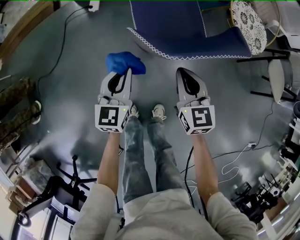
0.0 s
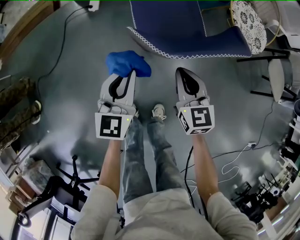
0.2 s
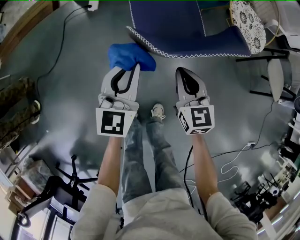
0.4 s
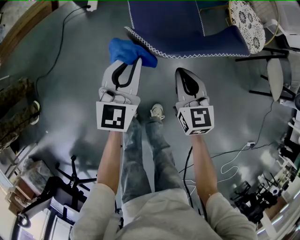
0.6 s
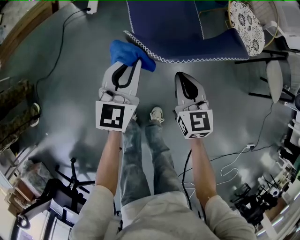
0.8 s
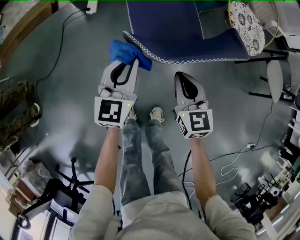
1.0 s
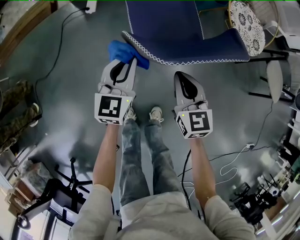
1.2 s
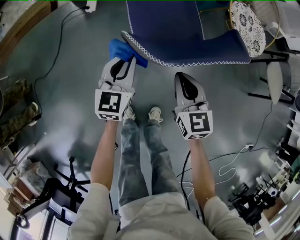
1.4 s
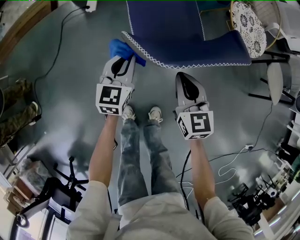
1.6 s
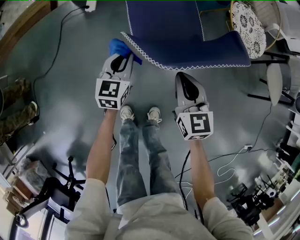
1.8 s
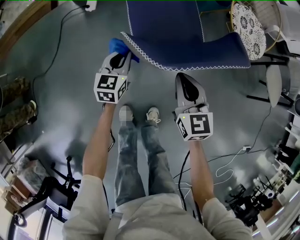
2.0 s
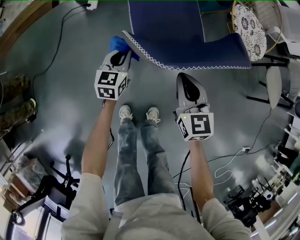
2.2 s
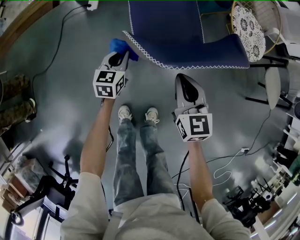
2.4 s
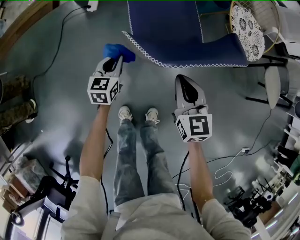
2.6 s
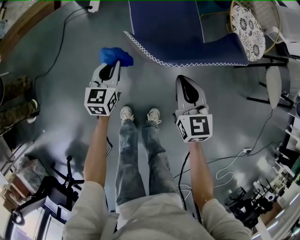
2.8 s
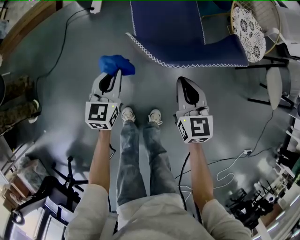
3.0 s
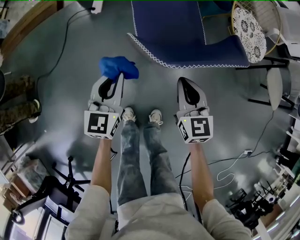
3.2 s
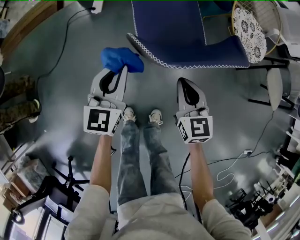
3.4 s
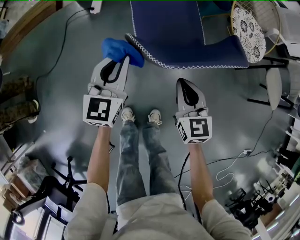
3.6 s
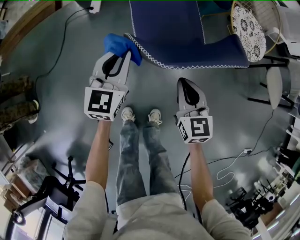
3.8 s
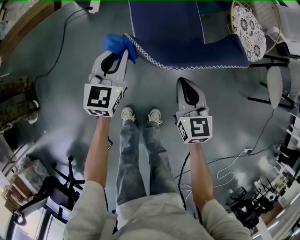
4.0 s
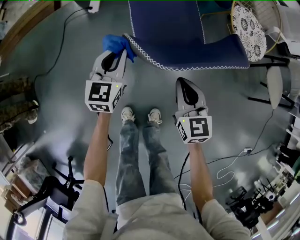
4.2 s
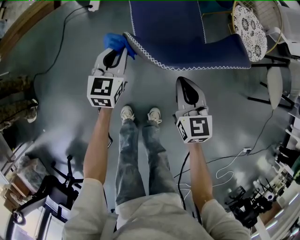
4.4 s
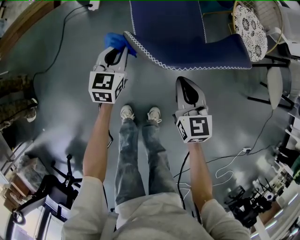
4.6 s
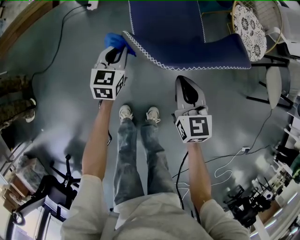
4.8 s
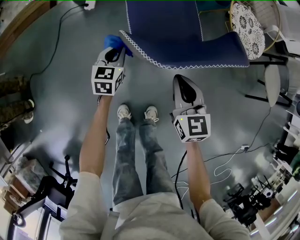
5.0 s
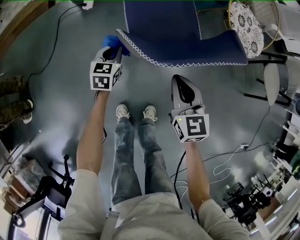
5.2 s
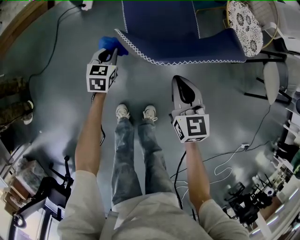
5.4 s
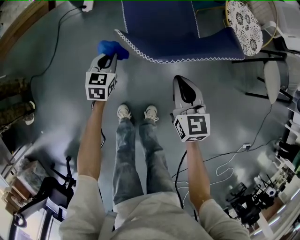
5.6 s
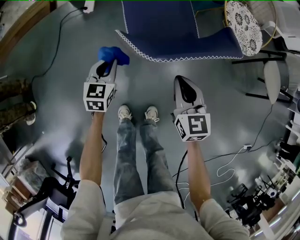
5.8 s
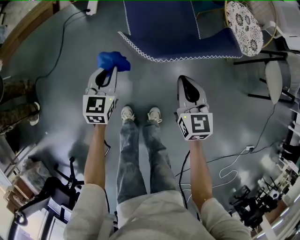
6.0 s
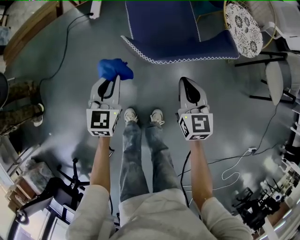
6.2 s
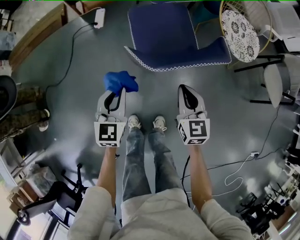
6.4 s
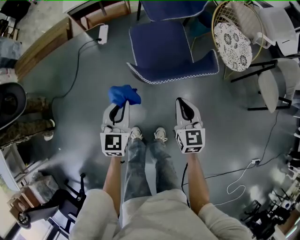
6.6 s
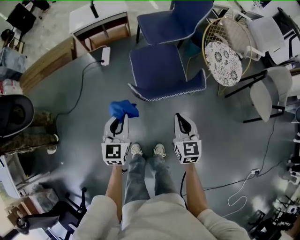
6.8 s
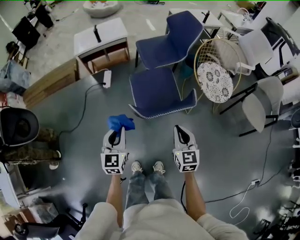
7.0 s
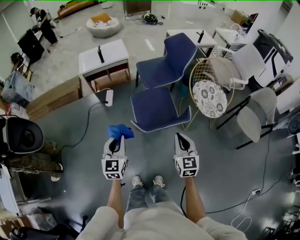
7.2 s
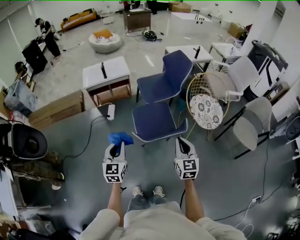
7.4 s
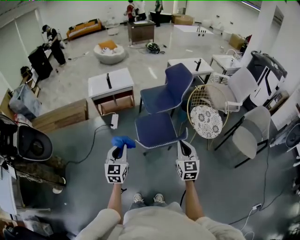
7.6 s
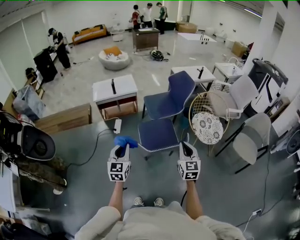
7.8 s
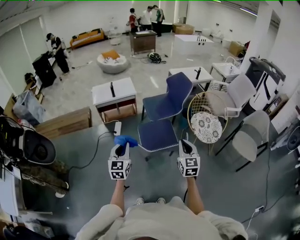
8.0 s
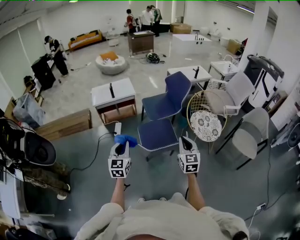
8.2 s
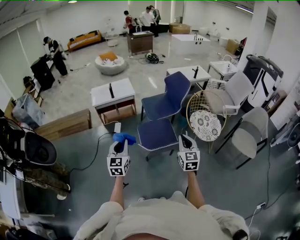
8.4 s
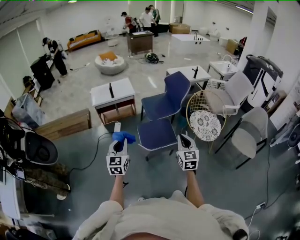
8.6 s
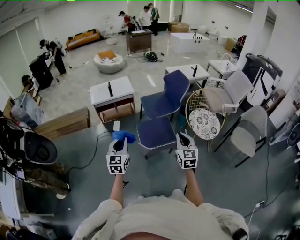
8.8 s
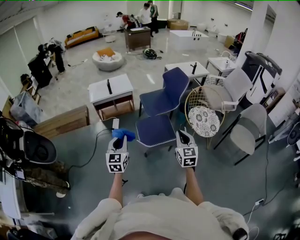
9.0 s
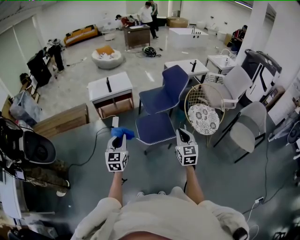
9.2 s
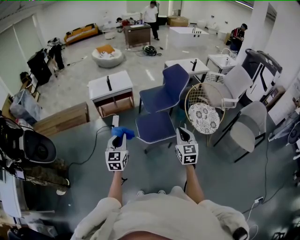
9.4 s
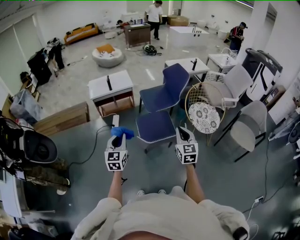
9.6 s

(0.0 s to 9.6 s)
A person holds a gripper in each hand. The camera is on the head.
0.0 s - 1.6 s: The left gripper heads forward, covering roughly 5 cm, and moves approximately 5 cm upward and comes back.
1.6 s - 3.2 s: The left gripper goes roughly 10 cm backward and upward.
3.2 s - 4.8 s: The left gripper heads forward and downward, covering about 15 cm.
4.8 s - 6.4 s: The right gripper shifts by some 5 cm; the left gripper is displaced upward and backward by some 15 cm.
6.4 s - 8.0 s: The two grippers go approximately 30 cm upward.
8.0 s - 9.6 s: The grippers make only small movements.

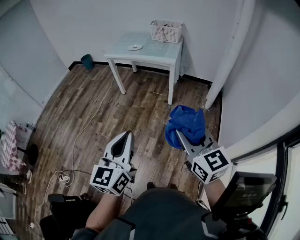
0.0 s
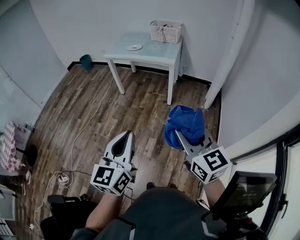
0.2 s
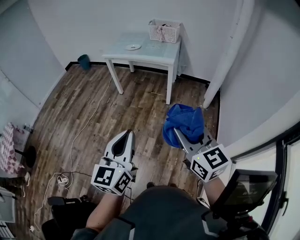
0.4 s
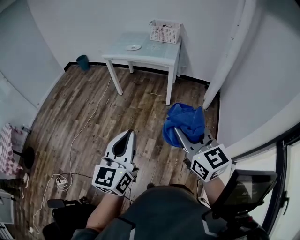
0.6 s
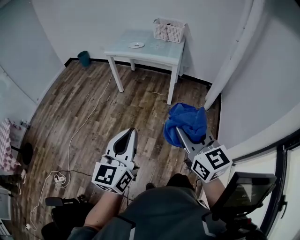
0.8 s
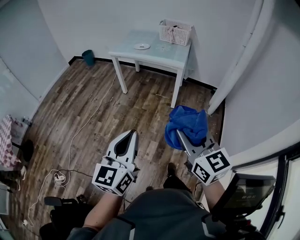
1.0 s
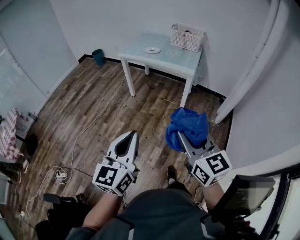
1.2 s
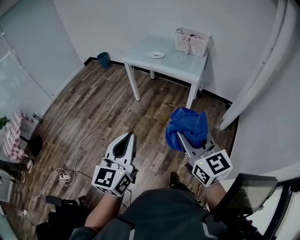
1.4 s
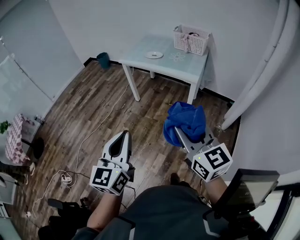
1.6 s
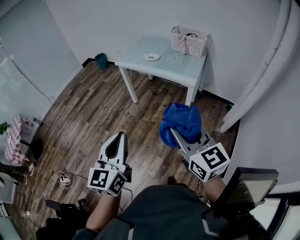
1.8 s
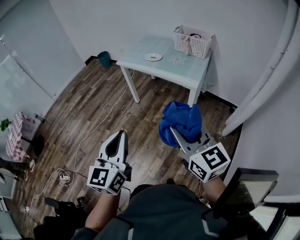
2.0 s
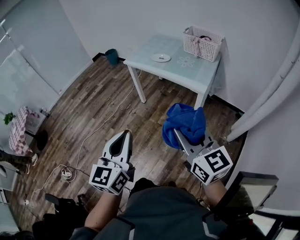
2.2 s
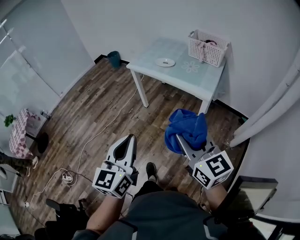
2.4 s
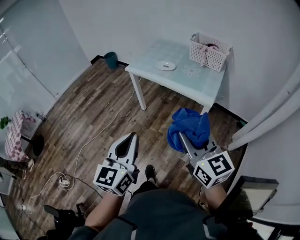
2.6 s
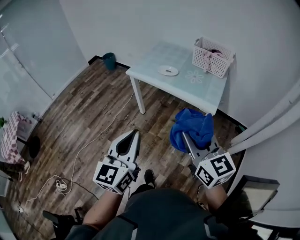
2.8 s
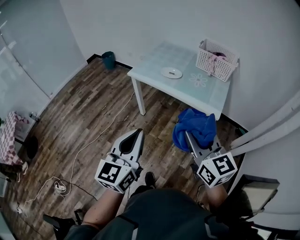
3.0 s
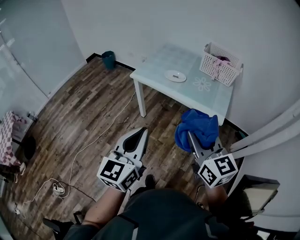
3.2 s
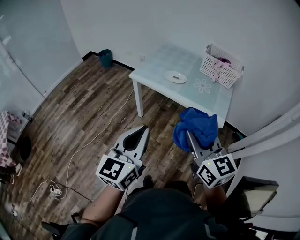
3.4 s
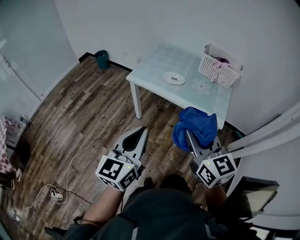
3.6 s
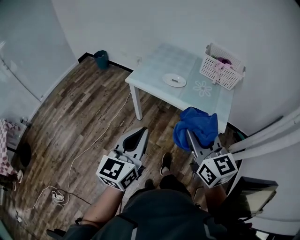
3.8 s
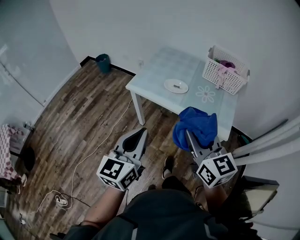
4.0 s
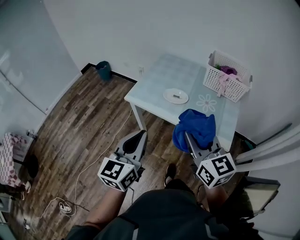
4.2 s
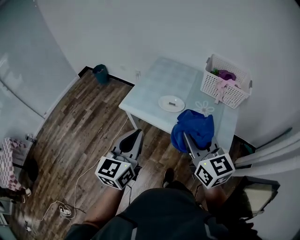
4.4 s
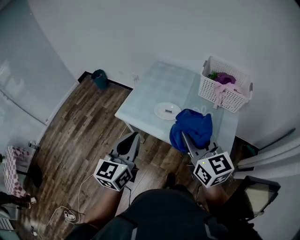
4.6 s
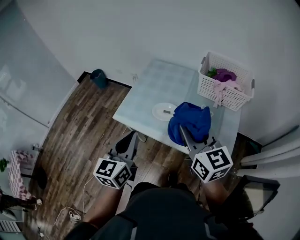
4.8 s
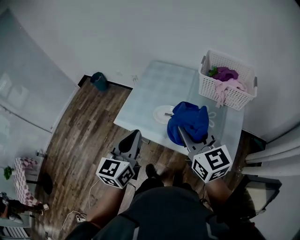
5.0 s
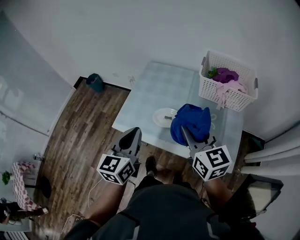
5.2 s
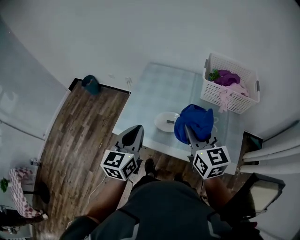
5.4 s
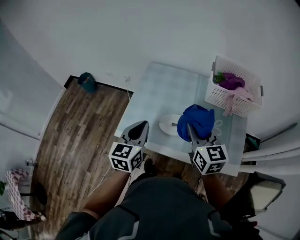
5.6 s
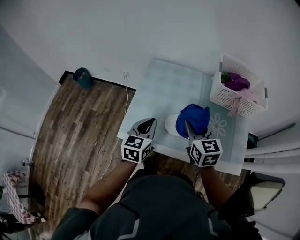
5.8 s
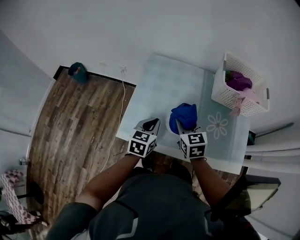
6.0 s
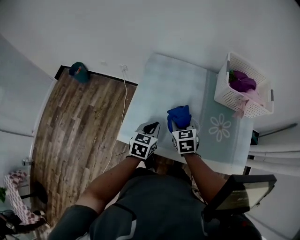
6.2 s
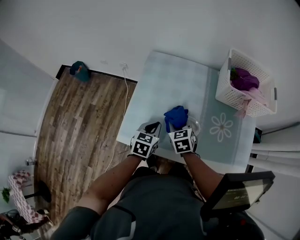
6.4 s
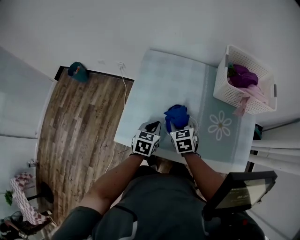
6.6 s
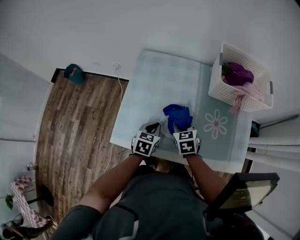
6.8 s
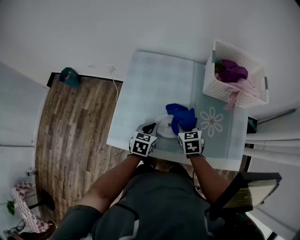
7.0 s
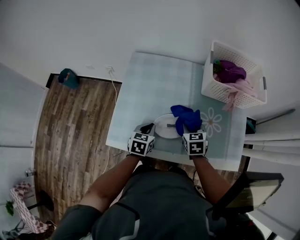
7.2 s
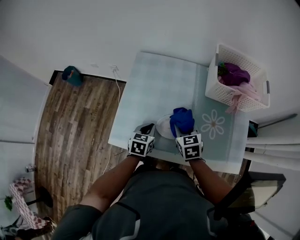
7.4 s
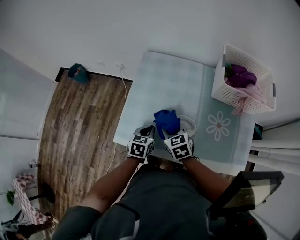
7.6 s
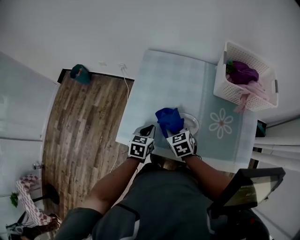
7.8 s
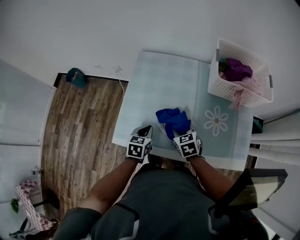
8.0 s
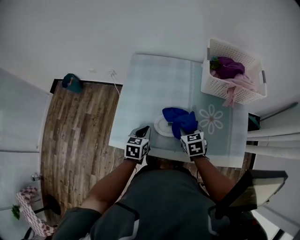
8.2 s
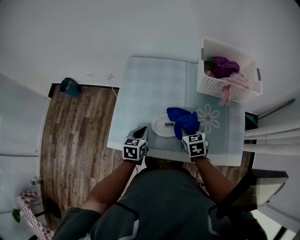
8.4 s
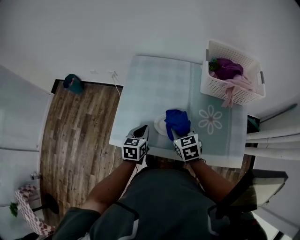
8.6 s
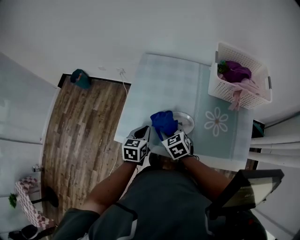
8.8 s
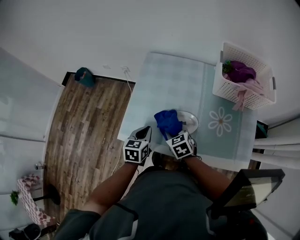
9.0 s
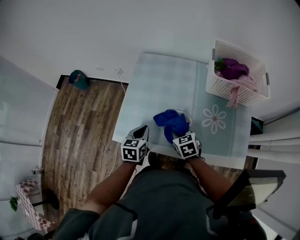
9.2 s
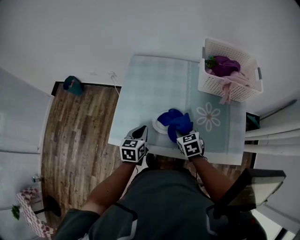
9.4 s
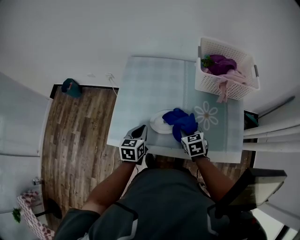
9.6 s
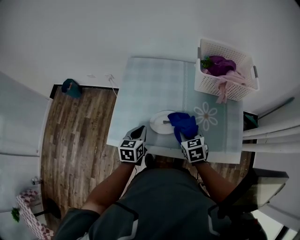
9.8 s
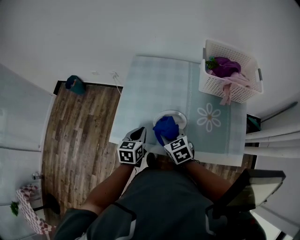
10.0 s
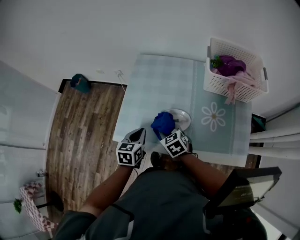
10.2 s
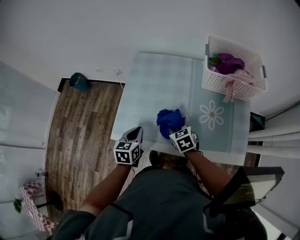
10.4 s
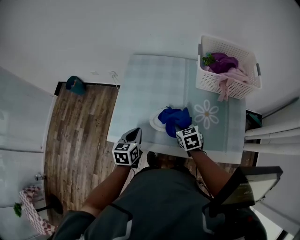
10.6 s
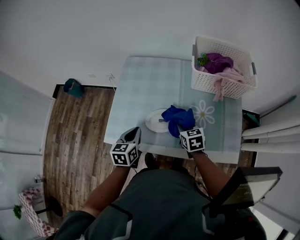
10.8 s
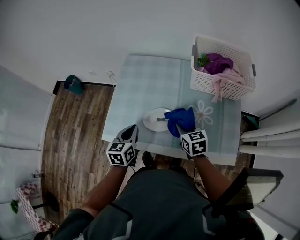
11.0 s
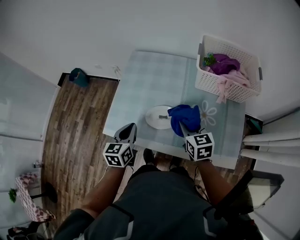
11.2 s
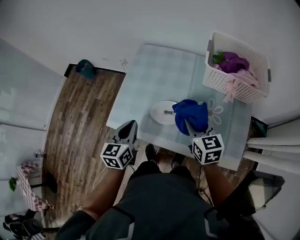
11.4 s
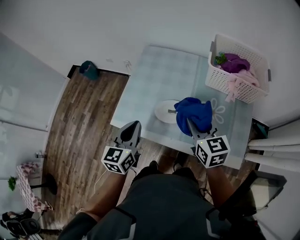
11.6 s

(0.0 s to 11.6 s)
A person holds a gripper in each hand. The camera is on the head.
0.0 s - 1.4 s: Both grippers travel together forward, approximately 15 cm.
1.4 s - 2.8 s: Both grippers move forward, about 30 cm.
2.8 s - 4.4 s: Both grippers move forward, approximately 35 cm.
4.4 s - 5.8 s: Both grippers travel together forward and downward, some 35 cm. The right gripper rotates some 20 degrees. Meanwhile the left gripper changes its angle by about 20 degrees.
5.8 s - 7.2 s: The right gripper travels downward and to the right by approximately 20 cm, and rotates about 30 degrees; the left gripper travels downward by roughly 15 cm, and swivels roughly 20 degrees.
7.2 s - 8.8 s: The right gripper swings left and right, about 15 cm each way, with 2 reversals, and turns by about 30 degrees. Meanwhile the left gripper goes some 5 cm to the left.
8.8 s - 10.2 s: The right gripper goes to the right and returns, about 15 cm each way.
10.2 s - 11.6 s: The right gripper travels upward and to the right by approximately 20 cm, and rotates about 30 degrees. Meanwhile the left gripper travels upward and backward by roughly 15 cm.

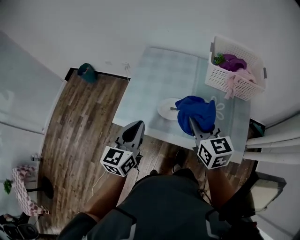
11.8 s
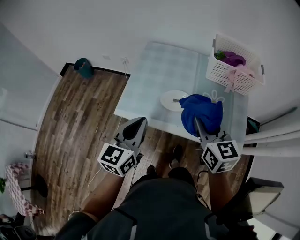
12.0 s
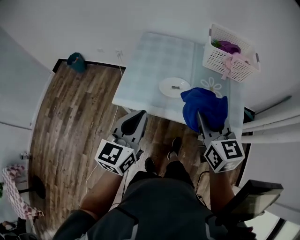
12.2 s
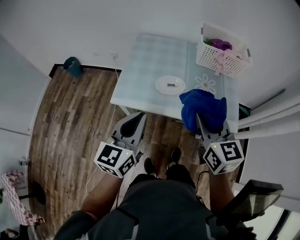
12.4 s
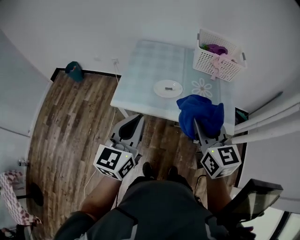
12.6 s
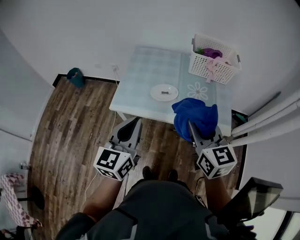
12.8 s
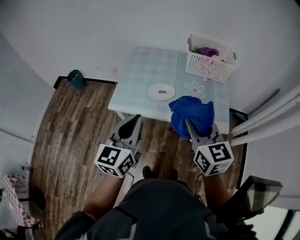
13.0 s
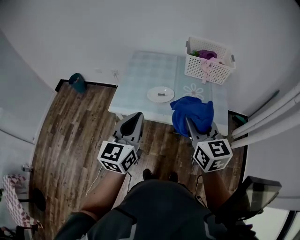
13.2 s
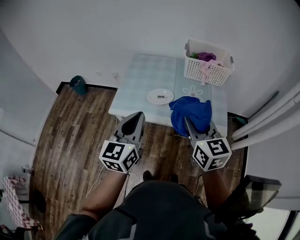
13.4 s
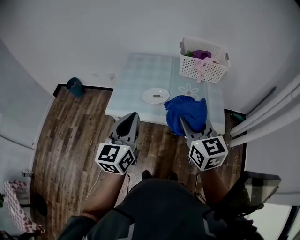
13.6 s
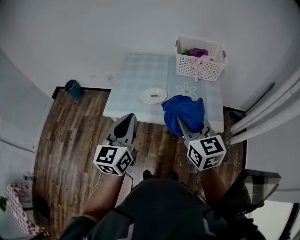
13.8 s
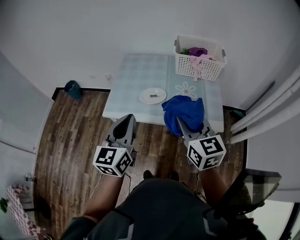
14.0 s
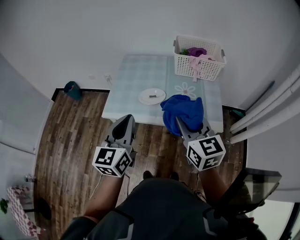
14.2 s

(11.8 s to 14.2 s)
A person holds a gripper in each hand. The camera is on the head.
11.8 s - 13.0 s: The two grippers go about 20 cm backward and upward.
13.0 s - 14.2 s: The grippers make only small movements.
